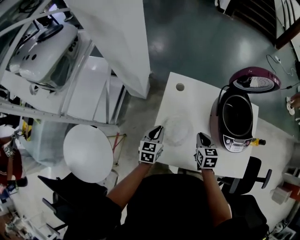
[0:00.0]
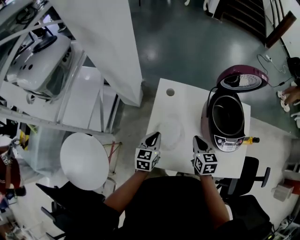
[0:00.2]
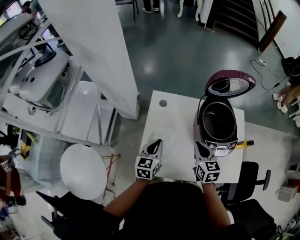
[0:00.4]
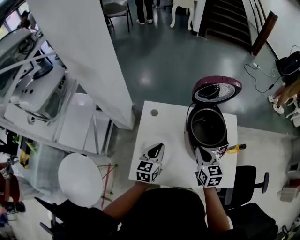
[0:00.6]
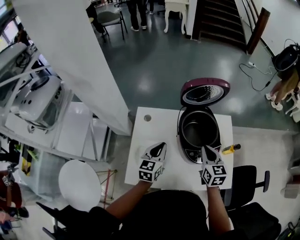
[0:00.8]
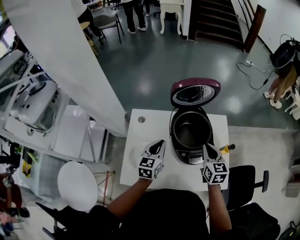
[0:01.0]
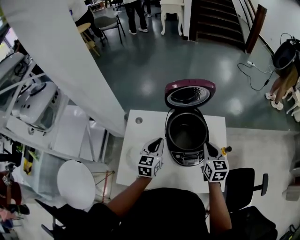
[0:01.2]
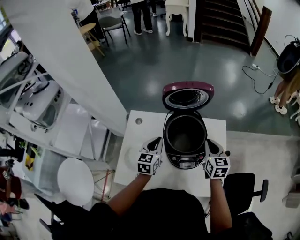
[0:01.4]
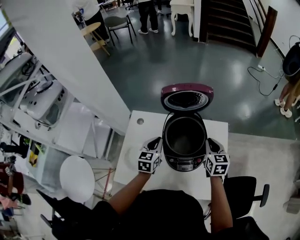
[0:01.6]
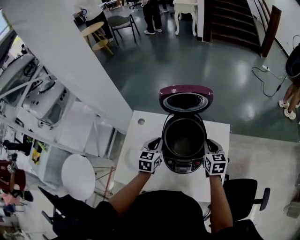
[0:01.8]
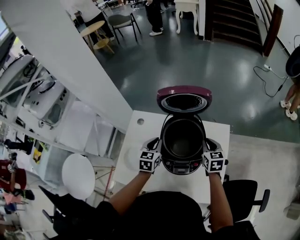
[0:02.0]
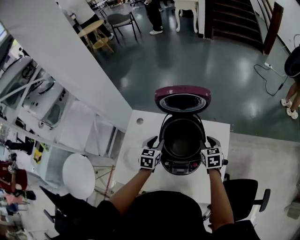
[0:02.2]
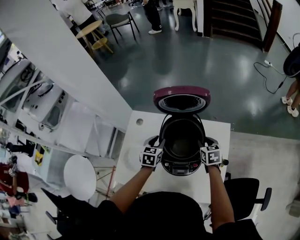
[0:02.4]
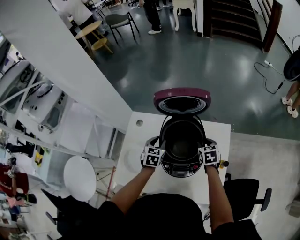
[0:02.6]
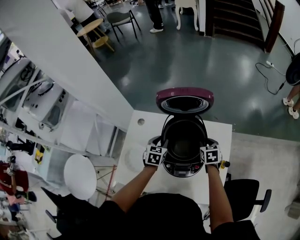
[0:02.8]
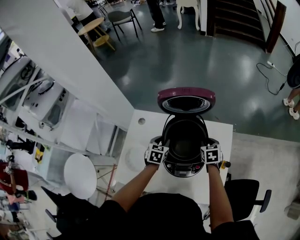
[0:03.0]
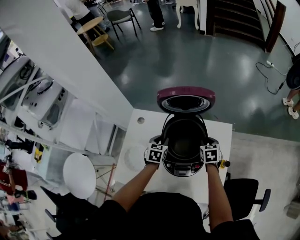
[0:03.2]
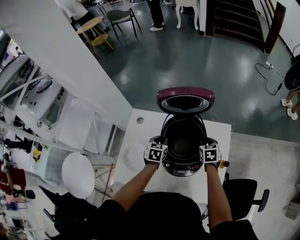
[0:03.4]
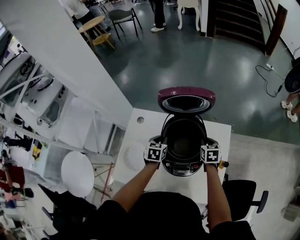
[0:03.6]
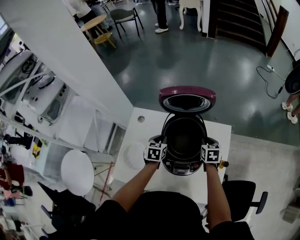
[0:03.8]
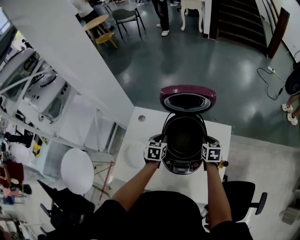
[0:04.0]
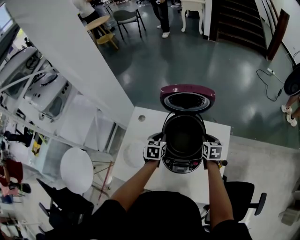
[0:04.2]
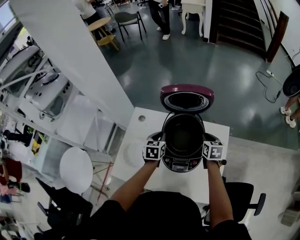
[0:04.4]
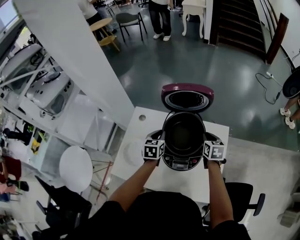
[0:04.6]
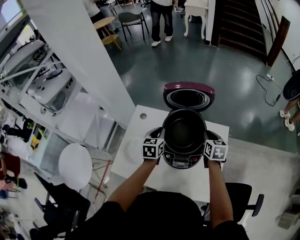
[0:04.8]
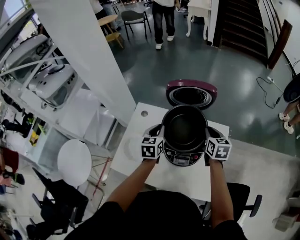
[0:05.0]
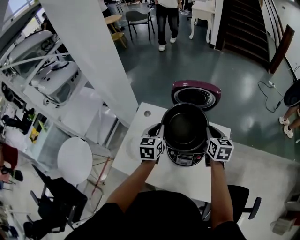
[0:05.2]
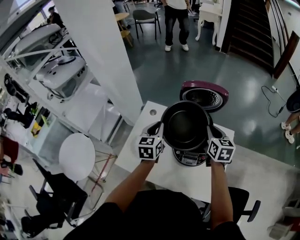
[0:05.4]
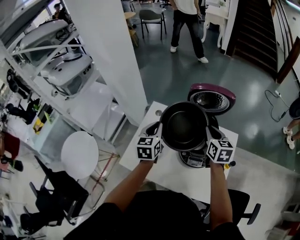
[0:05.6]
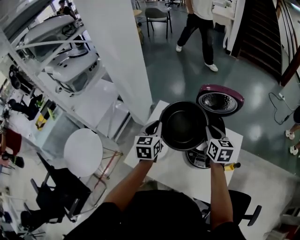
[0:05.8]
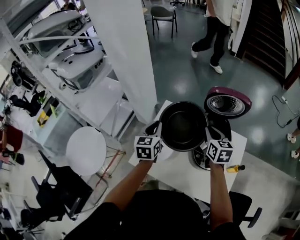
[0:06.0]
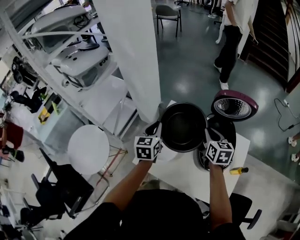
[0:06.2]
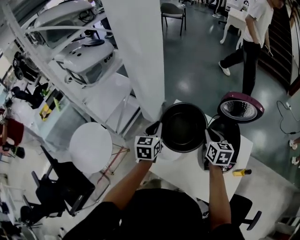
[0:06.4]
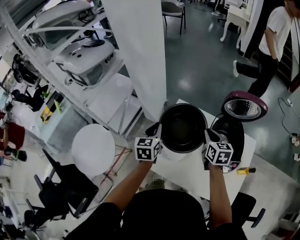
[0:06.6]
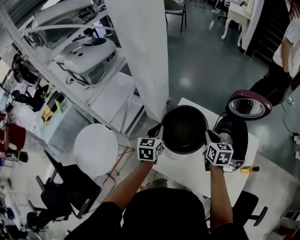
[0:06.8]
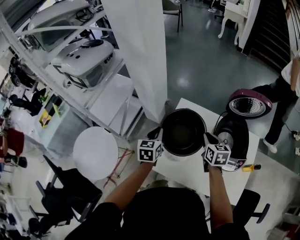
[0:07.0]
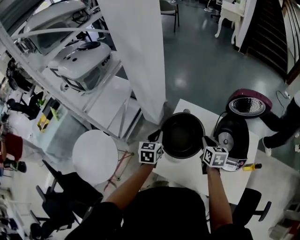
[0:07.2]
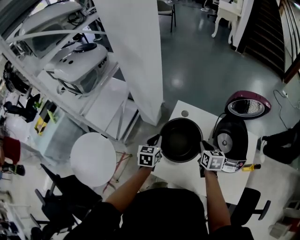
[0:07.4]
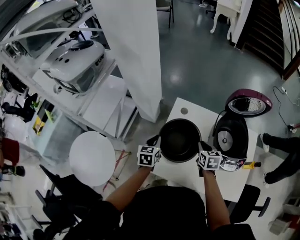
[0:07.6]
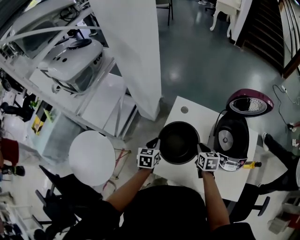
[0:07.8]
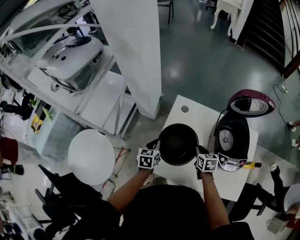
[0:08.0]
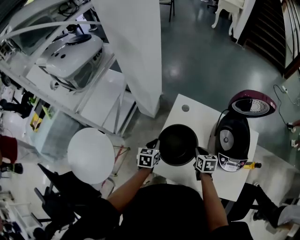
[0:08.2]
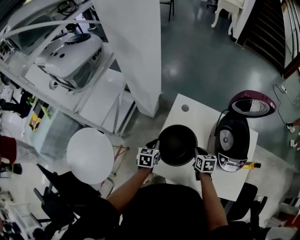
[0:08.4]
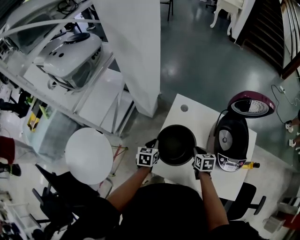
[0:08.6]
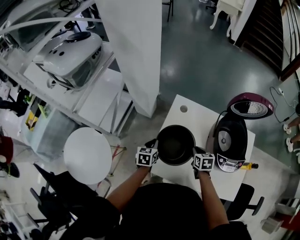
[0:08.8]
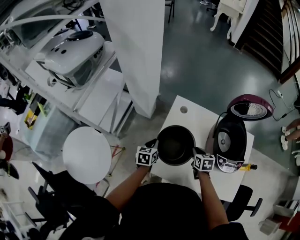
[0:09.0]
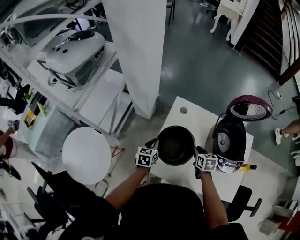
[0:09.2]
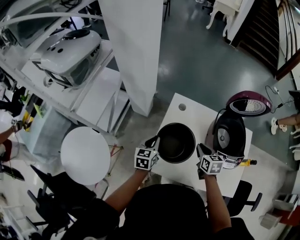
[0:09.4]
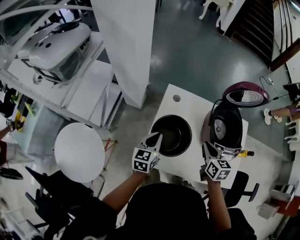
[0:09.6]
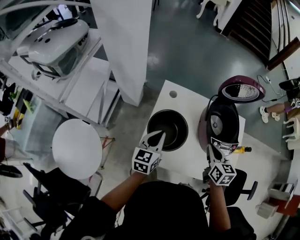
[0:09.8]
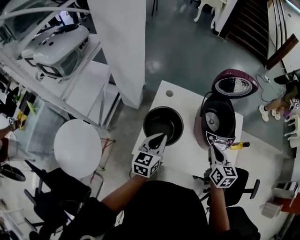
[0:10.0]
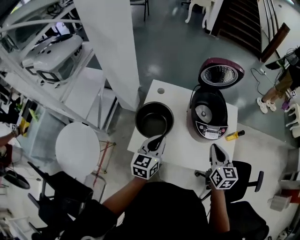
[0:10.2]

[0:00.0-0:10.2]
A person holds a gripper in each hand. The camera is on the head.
0:00.0 to 0:01.4: The grippers both shift to the right and upward by some 35 cm. The right gripper changes its angle by roughly 20 degrees.
0:01.4 to 0:03.0: Both grippers travel together downward and forward, roughly 15 cm. The left gripper changes its angle by roughly 20 degrees, and opens up. Meanwhile the right gripper turns by roughly 30 degrees, and opens.
0:03.0 to 0:04.4: The grippers both shift upward by roughly 5 cm. The left gripper closes.
0:04.4 to 0:05.8: Both grippers travel together to the left and upward, approximately 20 cm. The left gripper changes its angle by some 20 degrees.
0:05.8 to 0:07.2: The grippers both shift to the left and downward by some 20 cm.
0:07.2 to 0:08.8: Both grippers travel together downward, approximately 15 cm.
0:08.8 to 0:10.2: The right gripper moves upward, backward and to the right, approximately 30 cm, and swivels some 30 degrees, while the left gripper goes roughly 30 cm upward, to the right and backward, and rotates some 30 degrees.

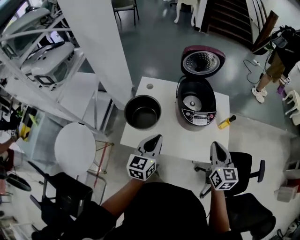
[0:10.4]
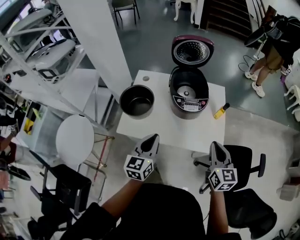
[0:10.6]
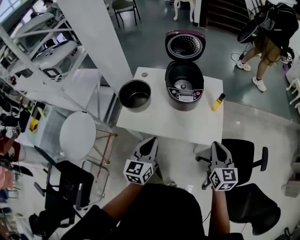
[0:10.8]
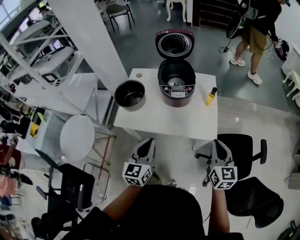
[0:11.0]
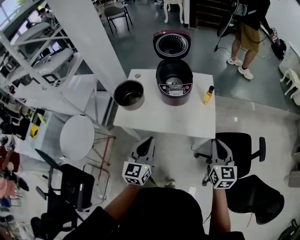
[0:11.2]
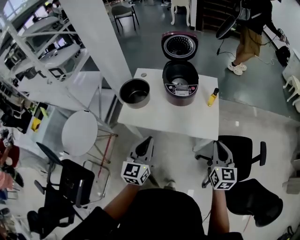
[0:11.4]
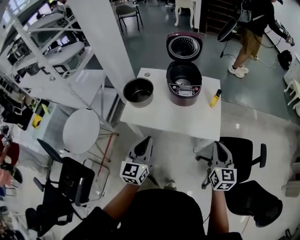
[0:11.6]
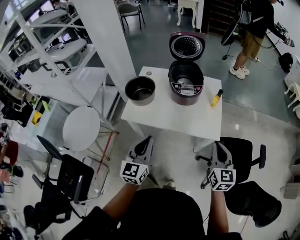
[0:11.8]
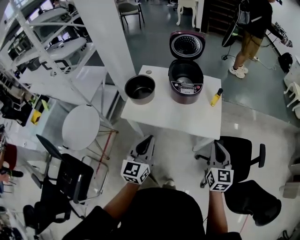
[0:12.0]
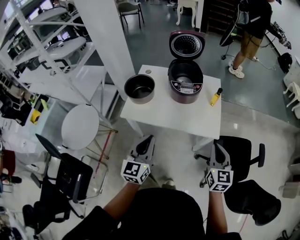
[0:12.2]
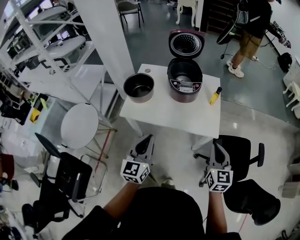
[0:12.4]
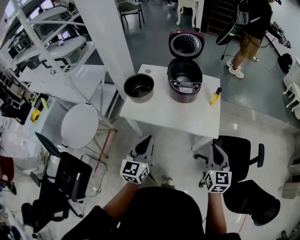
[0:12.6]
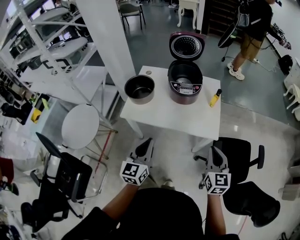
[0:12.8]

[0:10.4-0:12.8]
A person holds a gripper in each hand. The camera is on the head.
0:10.4 to 0:11.6: The right gripper moves backward and to the right, approximately 25 cm; the left gripper travels backward by approximately 20 cm.
0:11.6 to 0:12.8: There are only small adjustments of the grippers.

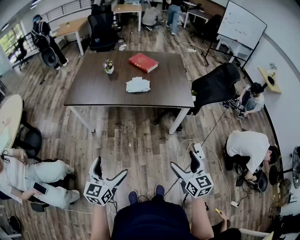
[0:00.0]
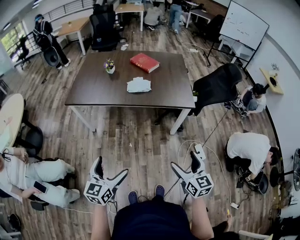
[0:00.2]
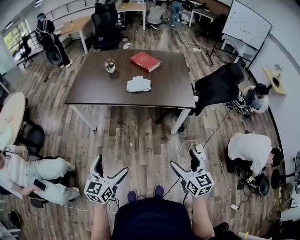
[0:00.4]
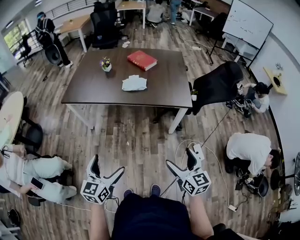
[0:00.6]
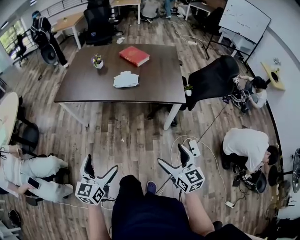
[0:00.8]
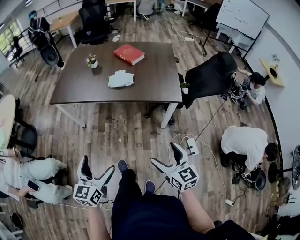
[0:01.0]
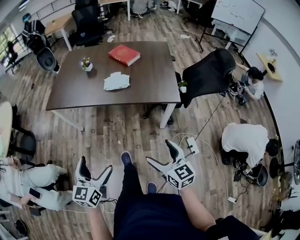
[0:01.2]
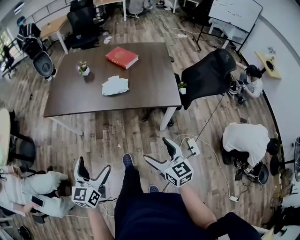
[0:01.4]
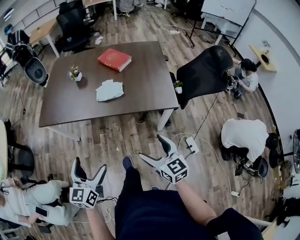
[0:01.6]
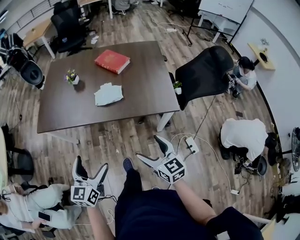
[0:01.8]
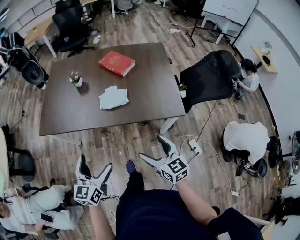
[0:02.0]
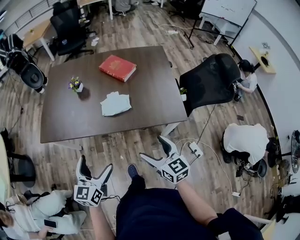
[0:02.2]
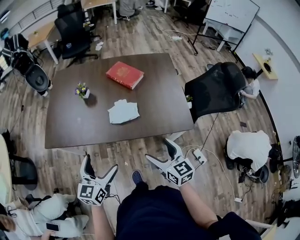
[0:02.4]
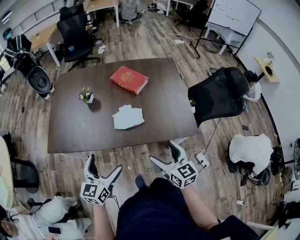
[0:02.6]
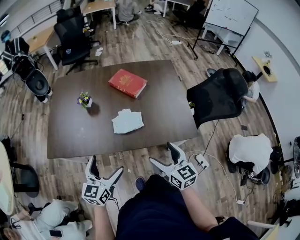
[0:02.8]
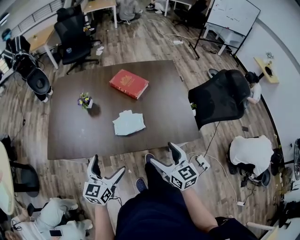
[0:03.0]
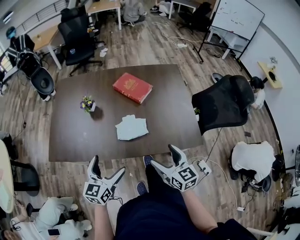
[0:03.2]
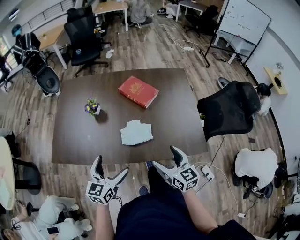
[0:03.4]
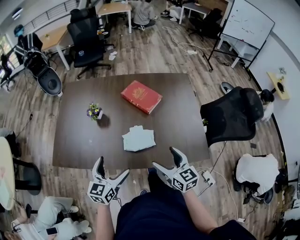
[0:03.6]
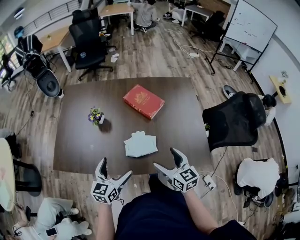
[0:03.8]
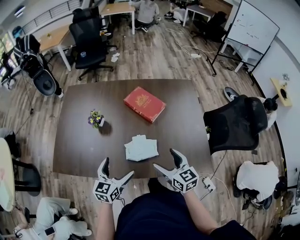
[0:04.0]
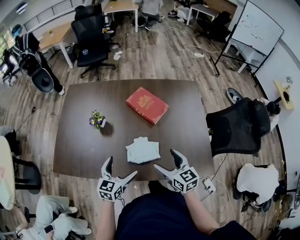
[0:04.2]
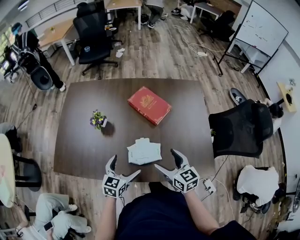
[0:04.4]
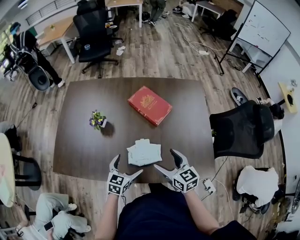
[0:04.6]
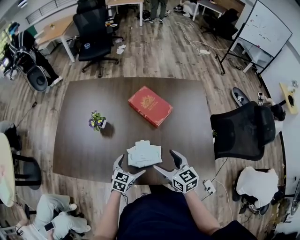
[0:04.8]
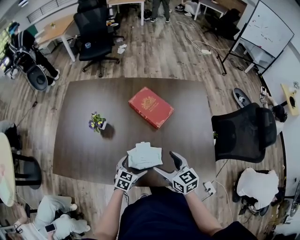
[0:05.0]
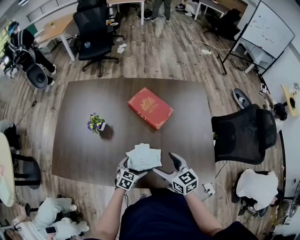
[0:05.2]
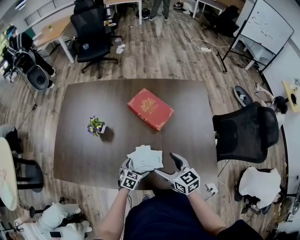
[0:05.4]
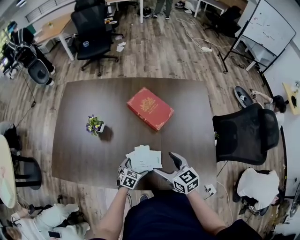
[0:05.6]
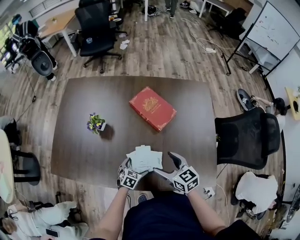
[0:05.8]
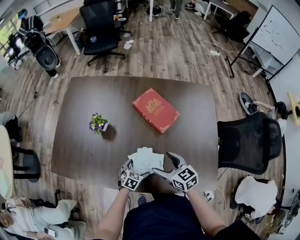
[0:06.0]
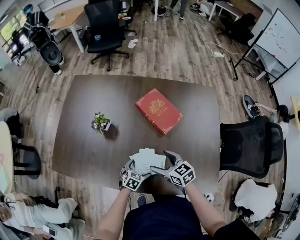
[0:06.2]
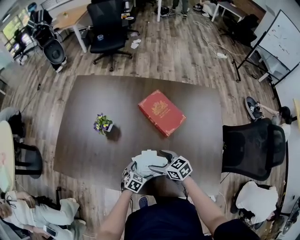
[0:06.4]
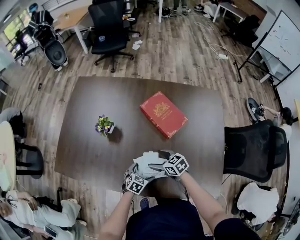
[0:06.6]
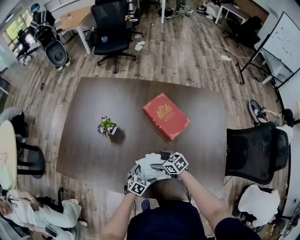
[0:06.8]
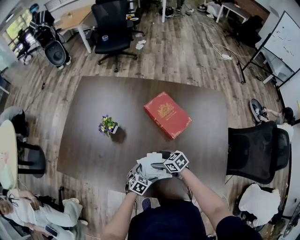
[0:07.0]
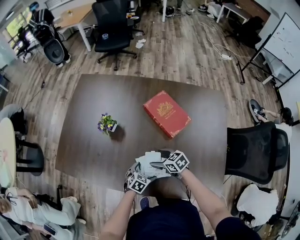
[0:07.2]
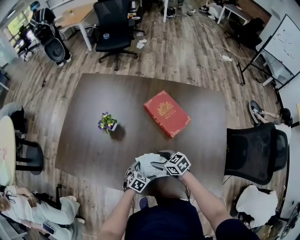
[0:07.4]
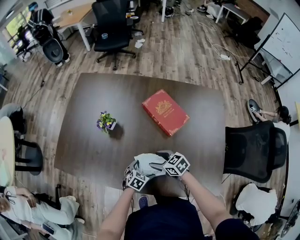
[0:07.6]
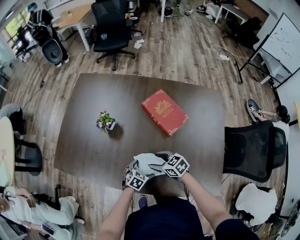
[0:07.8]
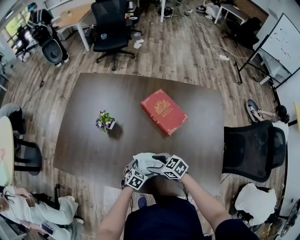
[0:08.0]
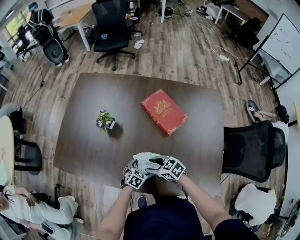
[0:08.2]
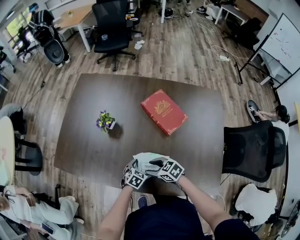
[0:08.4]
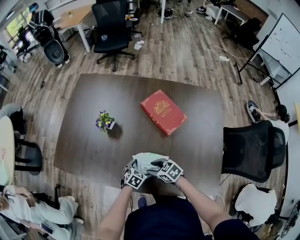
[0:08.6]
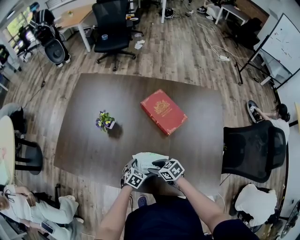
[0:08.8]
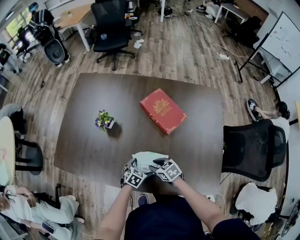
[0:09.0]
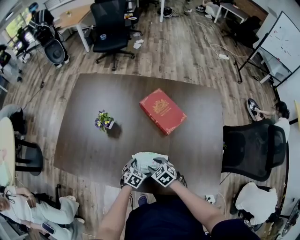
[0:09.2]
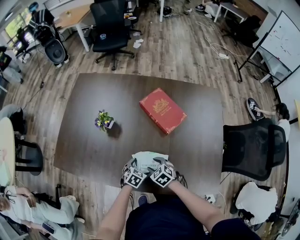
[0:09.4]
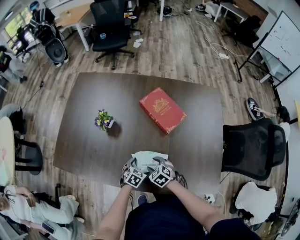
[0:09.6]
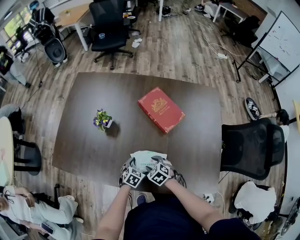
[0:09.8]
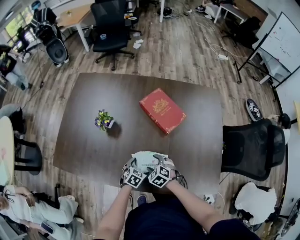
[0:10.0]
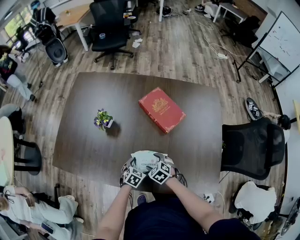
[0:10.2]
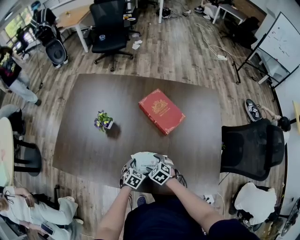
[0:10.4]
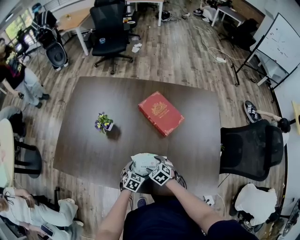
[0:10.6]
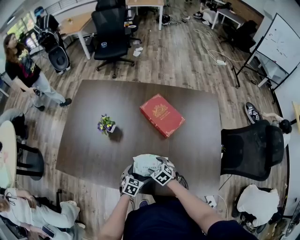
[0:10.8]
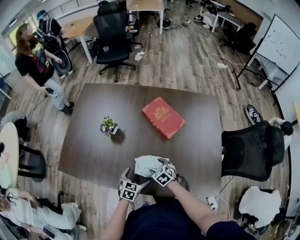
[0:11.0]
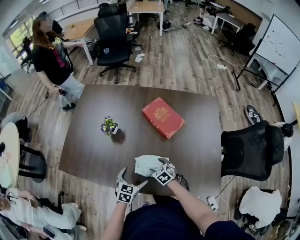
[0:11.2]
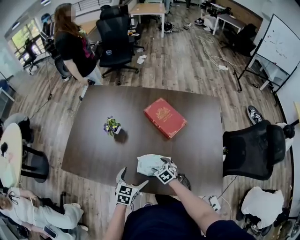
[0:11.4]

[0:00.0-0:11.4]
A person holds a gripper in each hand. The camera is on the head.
0:00.0 to 0:01.4: The right gripper travels forward by approximately 15 cm, while the left gripper shifts approximately 15 cm forward and to the right.
0:01.4 to 0:02.8: The two grippers go approximately 30 cm forward.
0:02.8 to 0:04.2: The two grippers go some 20 cm forward.
0:04.2 to 0:05.6: The left gripper heads downward, covering about 25 cm, and changes its angle by approximately 30 degrees, while the right gripper heads forward and downward, covering approximately 10 cm.
0:05.6 to 0:07.2: The right gripper travels downward, to the left and forward by some 20 cm, and swivels about 30 degrees.
0:07.2 to 0:08.6: The right gripper changes place by about 10 cm, and closes.
0:08.6 to 0:10.0: The right gripper changes its angle by approximately 30 degrees.
0:10.0 to 0:11.4: The left gripper heads upward, covering approximately 15 cm, and swivels some 20 degrees.
